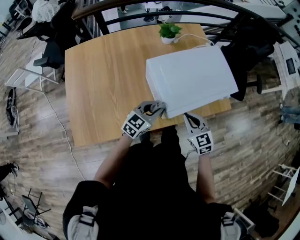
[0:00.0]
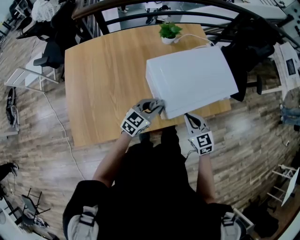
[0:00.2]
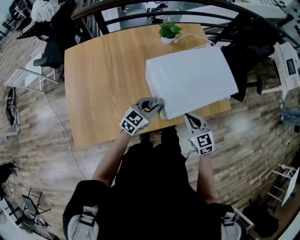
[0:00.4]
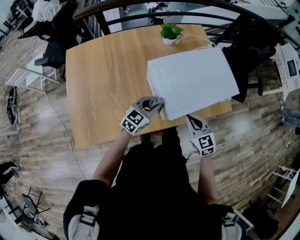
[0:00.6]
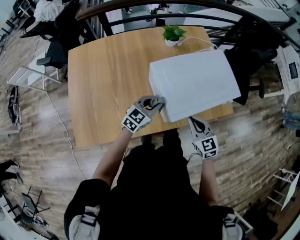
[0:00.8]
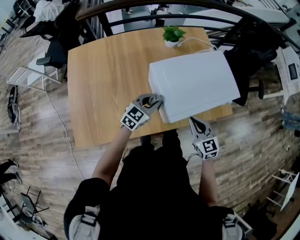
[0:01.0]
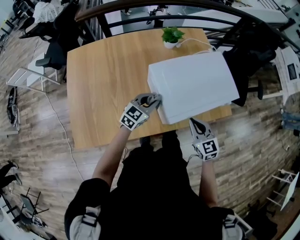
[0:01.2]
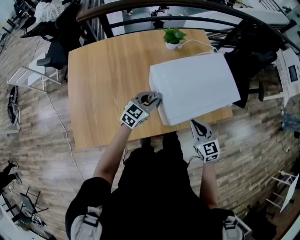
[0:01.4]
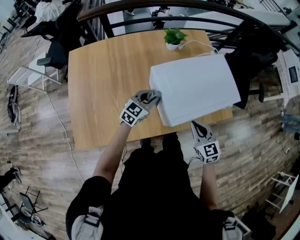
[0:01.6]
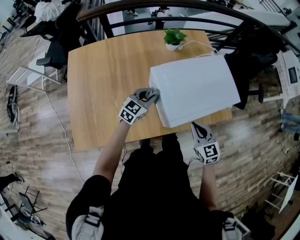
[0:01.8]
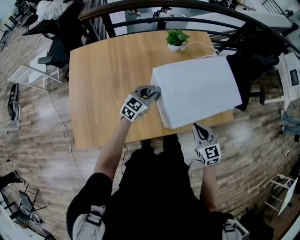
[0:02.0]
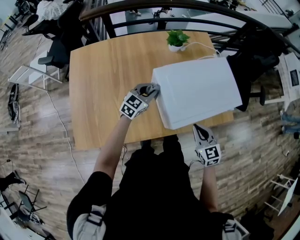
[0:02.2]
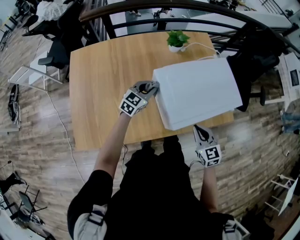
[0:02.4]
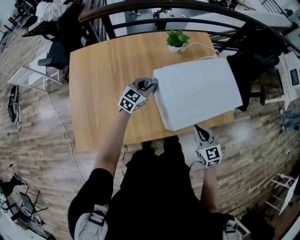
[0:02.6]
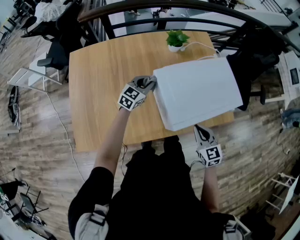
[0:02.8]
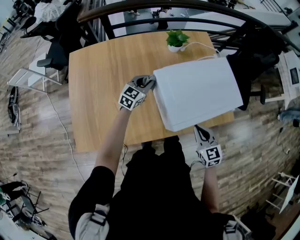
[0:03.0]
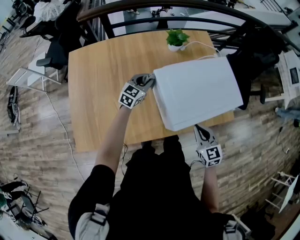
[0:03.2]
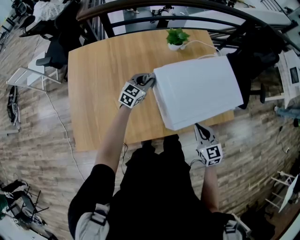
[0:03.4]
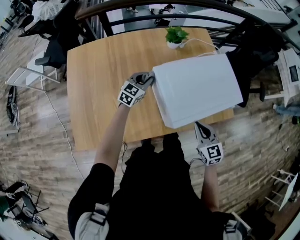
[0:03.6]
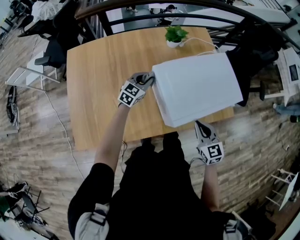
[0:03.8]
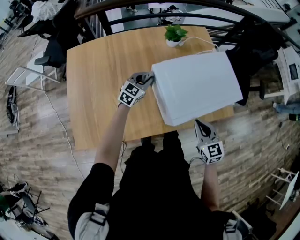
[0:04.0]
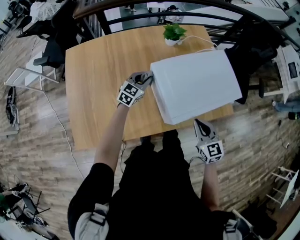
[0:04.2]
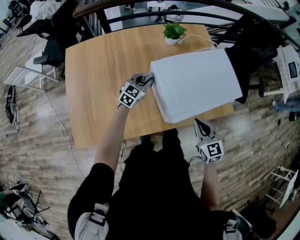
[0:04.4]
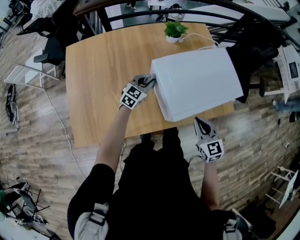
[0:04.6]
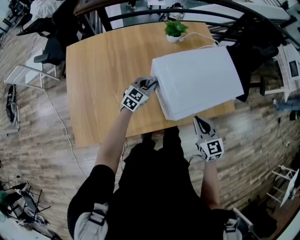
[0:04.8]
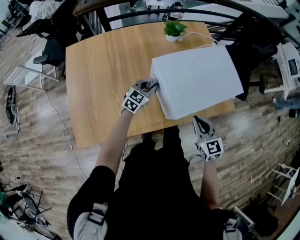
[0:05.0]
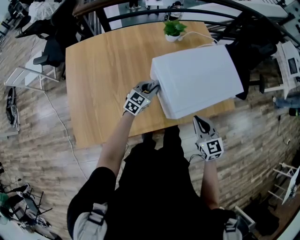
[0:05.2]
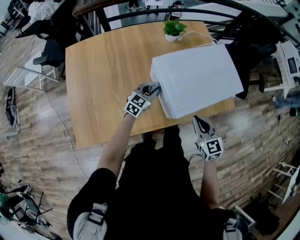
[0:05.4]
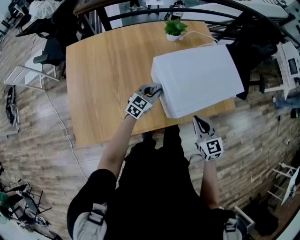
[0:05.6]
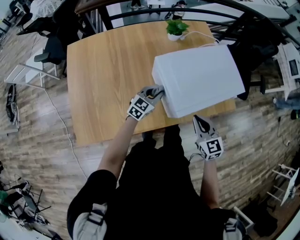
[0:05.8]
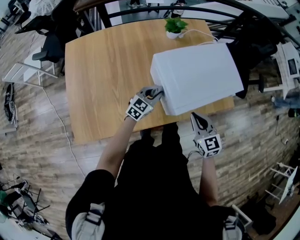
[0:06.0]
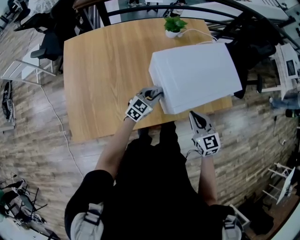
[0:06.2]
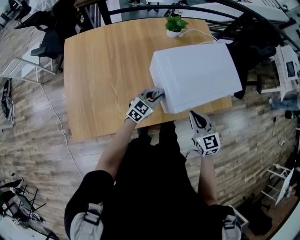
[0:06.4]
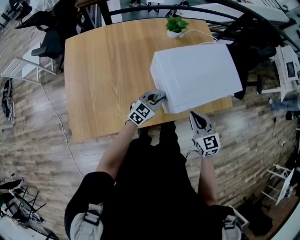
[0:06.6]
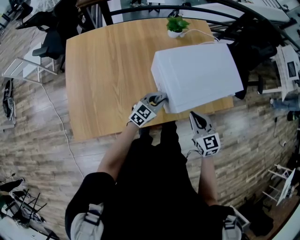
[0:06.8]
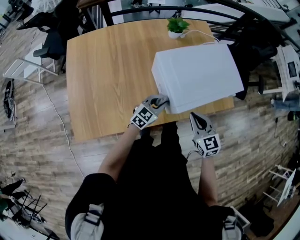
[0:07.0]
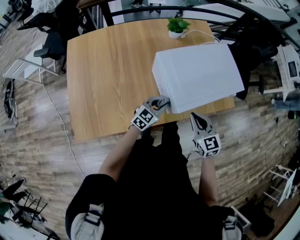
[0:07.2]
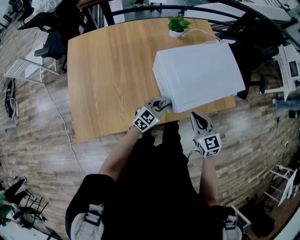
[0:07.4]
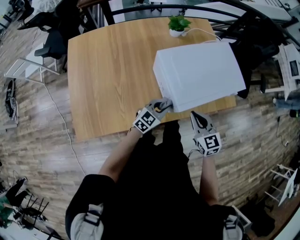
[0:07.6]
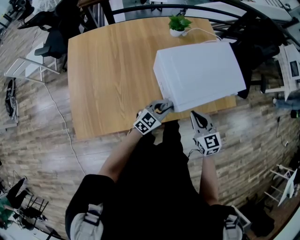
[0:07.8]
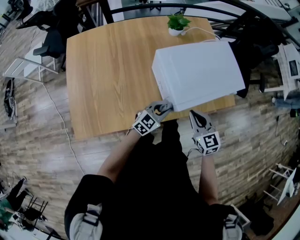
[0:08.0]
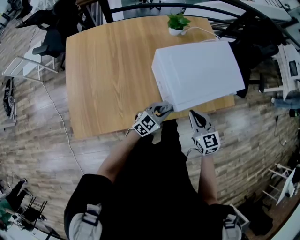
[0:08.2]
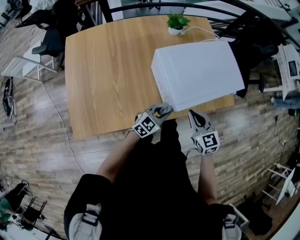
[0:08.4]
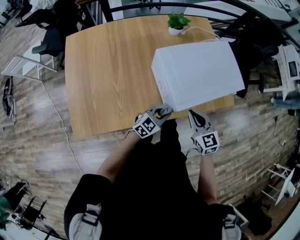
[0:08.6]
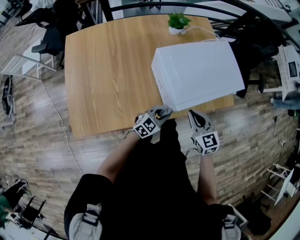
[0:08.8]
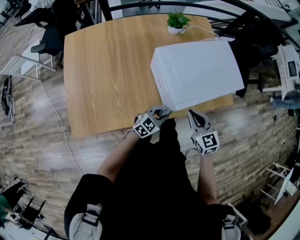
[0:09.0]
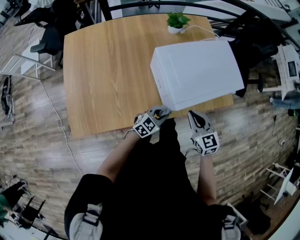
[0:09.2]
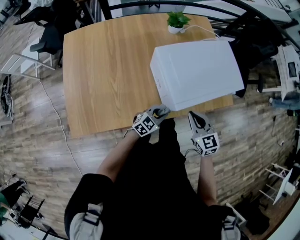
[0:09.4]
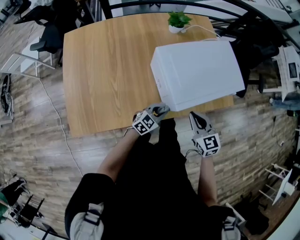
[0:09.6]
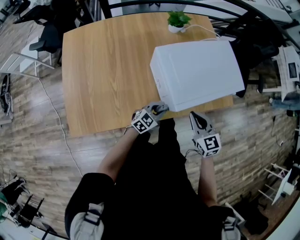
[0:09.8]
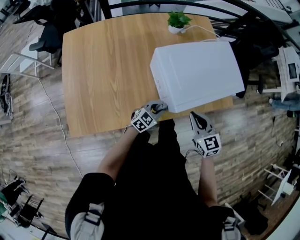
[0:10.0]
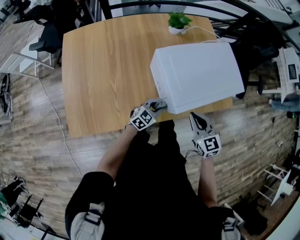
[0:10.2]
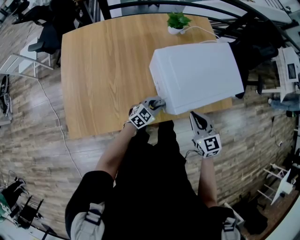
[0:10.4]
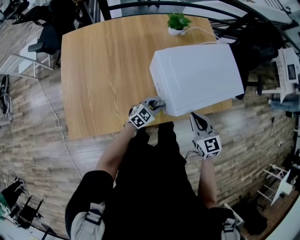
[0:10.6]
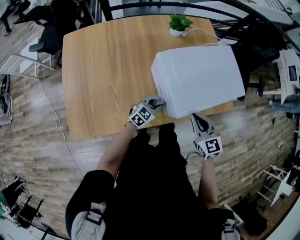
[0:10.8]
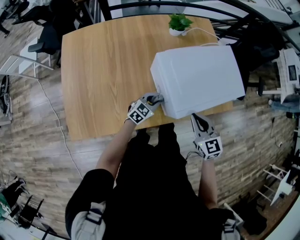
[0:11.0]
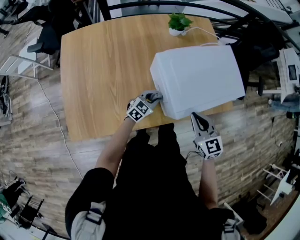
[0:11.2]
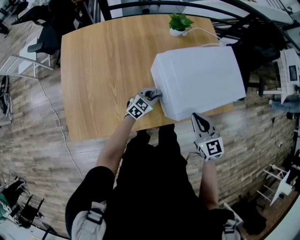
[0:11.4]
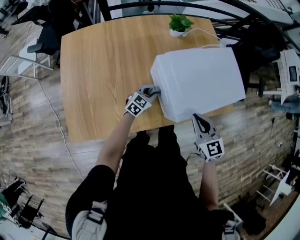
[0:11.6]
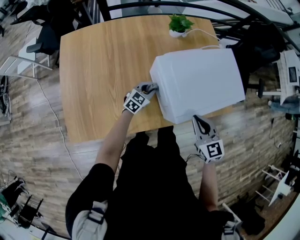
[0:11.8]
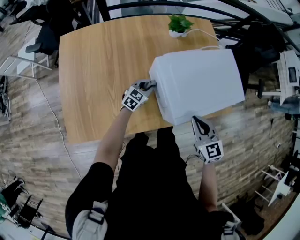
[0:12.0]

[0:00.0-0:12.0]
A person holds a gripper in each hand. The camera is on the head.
0:00.0 to 0:01.6: The left gripper travels forward and to the left by some 10 cm.
0:01.6 to 0:03.0: The left gripper travels forward and to the left by roughly 10 cm.
0:03.0 to 0:04.4: The grippers move only a little.
0:04.4 to 0:06.0: The left gripper travels backward and to the right by some 10 cm.
0:06.0 to 0:07.6: The left gripper heads backward and to the right, covering roughly 10 cm.
0:07.6 to 0:09.0: The left gripper changes place by some 5 cm.
0:09.0 to 0:10.4: The left gripper is displaced forward by about 5 cm.
0:10.4 to 0:12.0: The left gripper travels forward and to the left by some 15 cm.

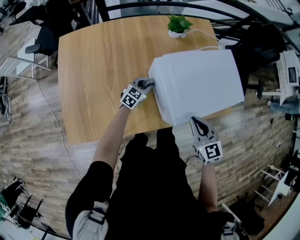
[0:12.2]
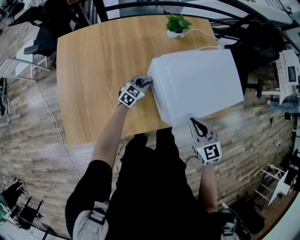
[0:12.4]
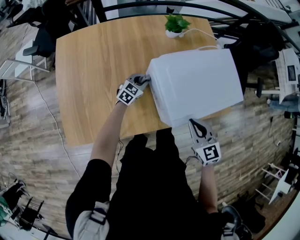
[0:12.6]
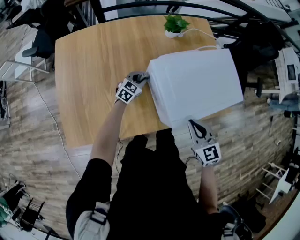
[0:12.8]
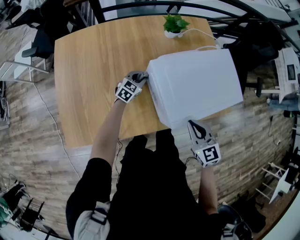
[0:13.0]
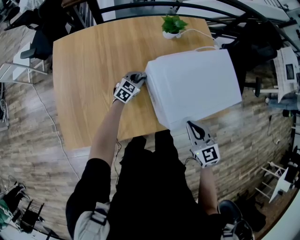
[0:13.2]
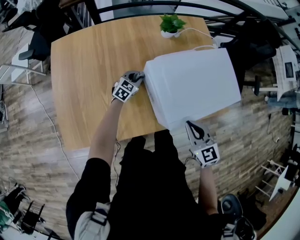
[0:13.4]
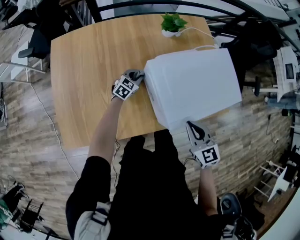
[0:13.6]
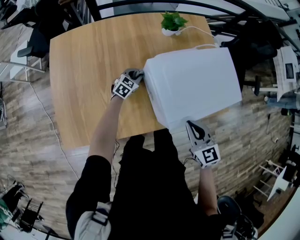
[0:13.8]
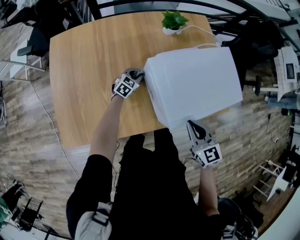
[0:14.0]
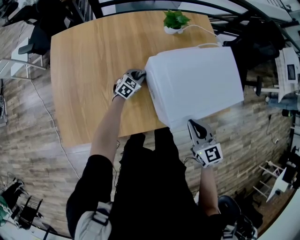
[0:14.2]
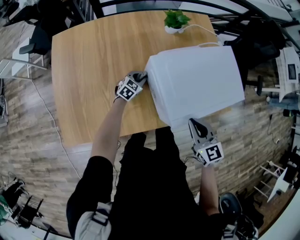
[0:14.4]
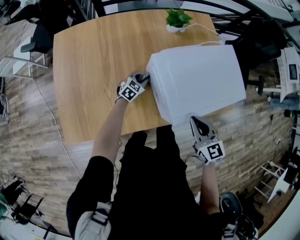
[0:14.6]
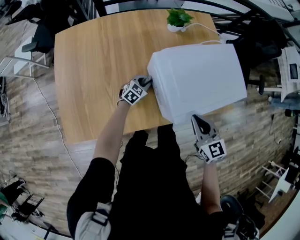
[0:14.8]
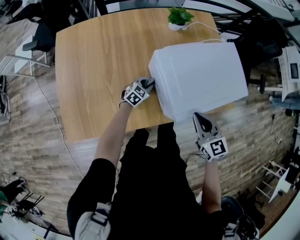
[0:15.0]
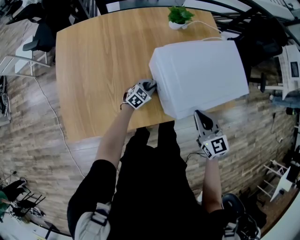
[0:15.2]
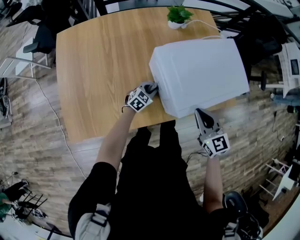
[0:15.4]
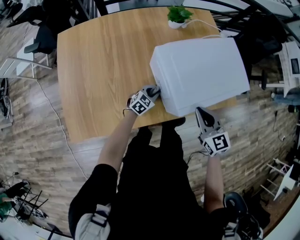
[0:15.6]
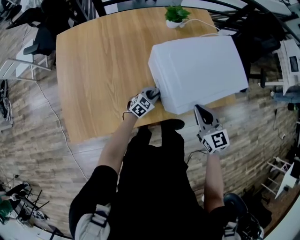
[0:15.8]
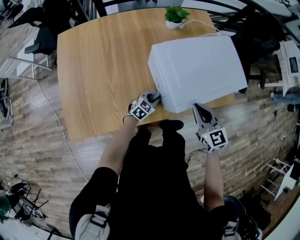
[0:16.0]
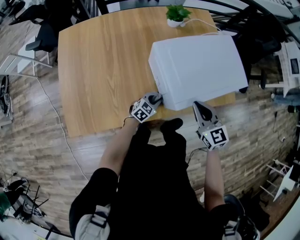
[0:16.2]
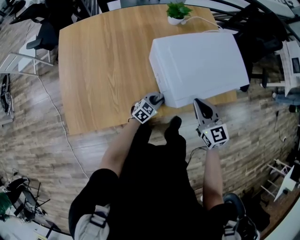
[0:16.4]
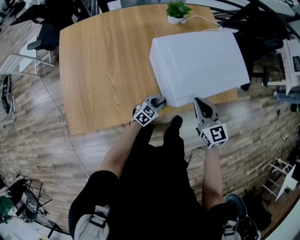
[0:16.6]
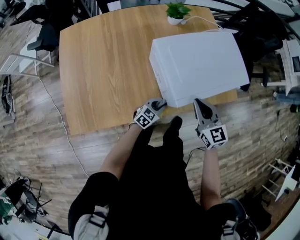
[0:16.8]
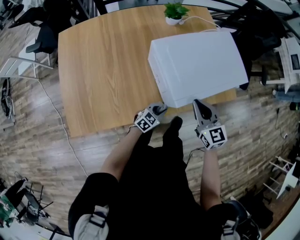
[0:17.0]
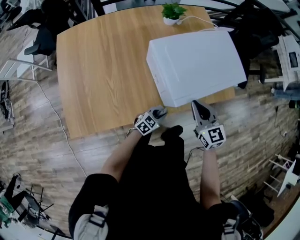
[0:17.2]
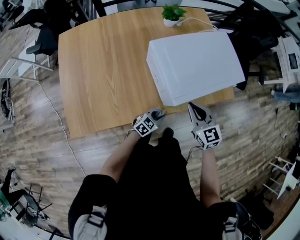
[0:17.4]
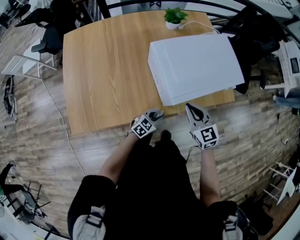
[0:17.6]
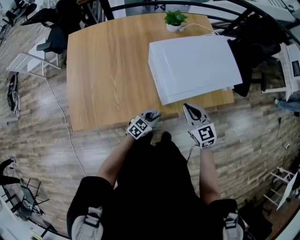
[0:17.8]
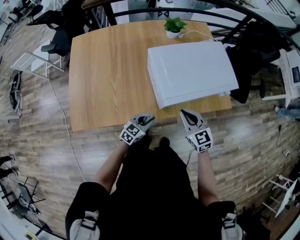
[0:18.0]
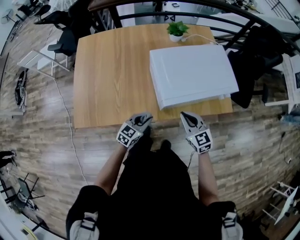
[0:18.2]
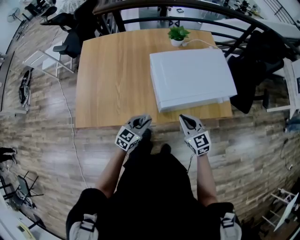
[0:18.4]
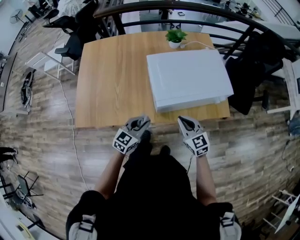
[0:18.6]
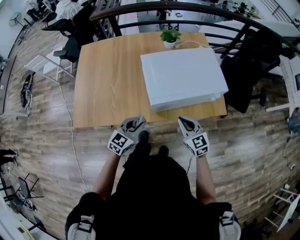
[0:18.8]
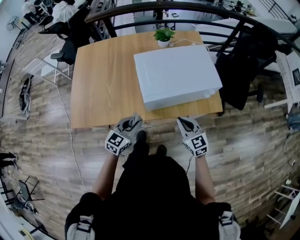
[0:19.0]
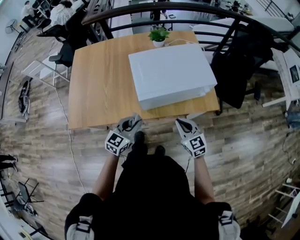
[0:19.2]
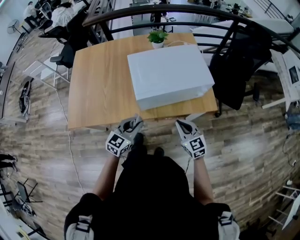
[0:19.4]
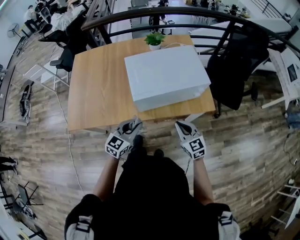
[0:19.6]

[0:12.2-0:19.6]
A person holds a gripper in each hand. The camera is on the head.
0:12.2 to 0:13.6: The left gripper shifts roughly 5 cm forward.
0:13.6 to 0:15.2: The left gripper is displaced backward and to the right by roughly 10 cm.
0:15.2 to 0:16.6: The left gripper goes about 15 cm backward and to the right.
0:16.6 to 0:18.2: The left gripper moves upward and backward, some 15 cm. Meanwhile the right gripper goes about 5 cm backward.
0:18.2 to 0:19.6: The left gripper shifts about 15 cm upward, to the right and backward. The right gripper moves to the right and backward, about 15 cm.

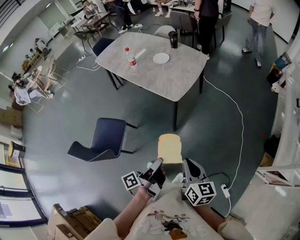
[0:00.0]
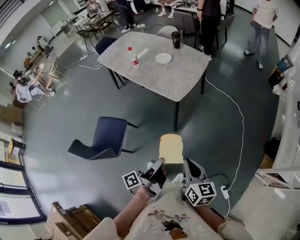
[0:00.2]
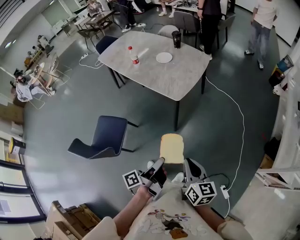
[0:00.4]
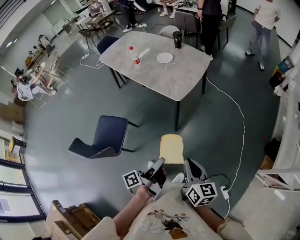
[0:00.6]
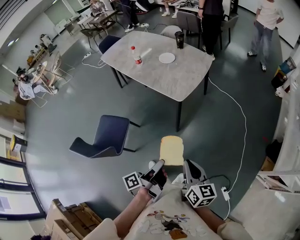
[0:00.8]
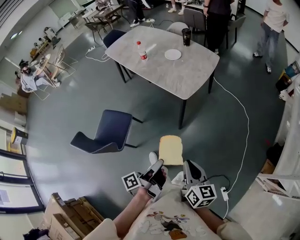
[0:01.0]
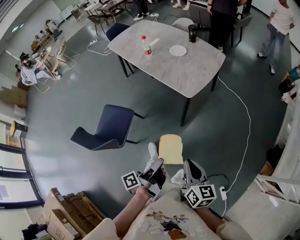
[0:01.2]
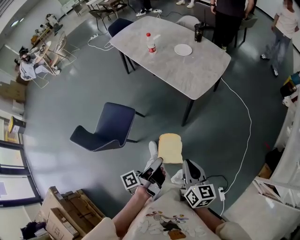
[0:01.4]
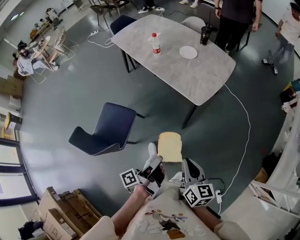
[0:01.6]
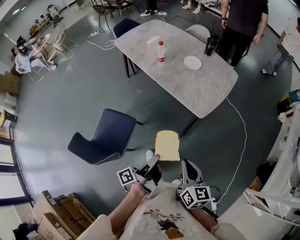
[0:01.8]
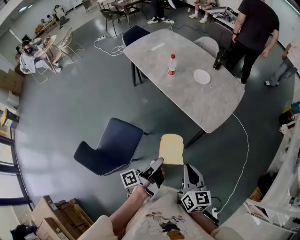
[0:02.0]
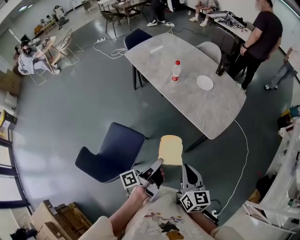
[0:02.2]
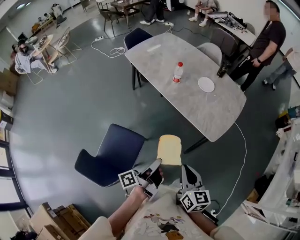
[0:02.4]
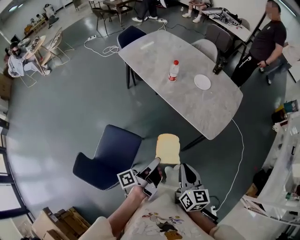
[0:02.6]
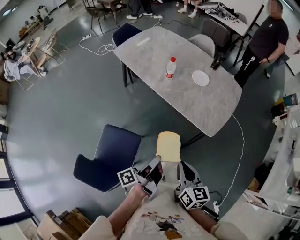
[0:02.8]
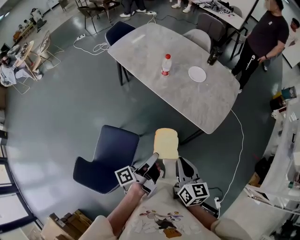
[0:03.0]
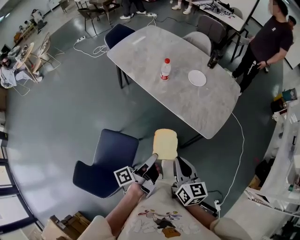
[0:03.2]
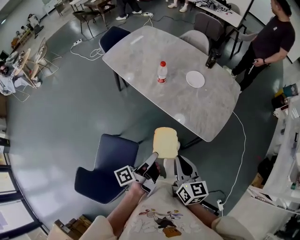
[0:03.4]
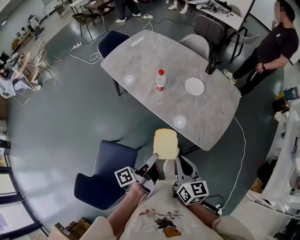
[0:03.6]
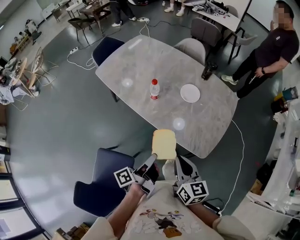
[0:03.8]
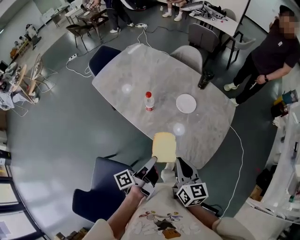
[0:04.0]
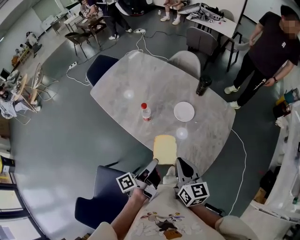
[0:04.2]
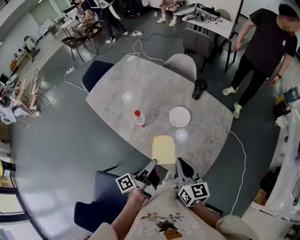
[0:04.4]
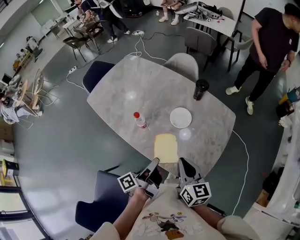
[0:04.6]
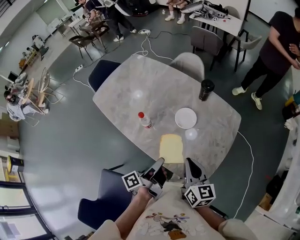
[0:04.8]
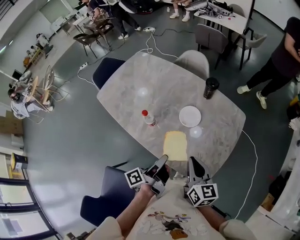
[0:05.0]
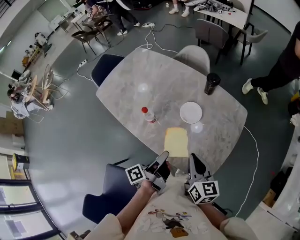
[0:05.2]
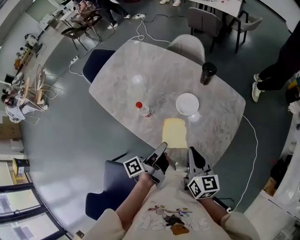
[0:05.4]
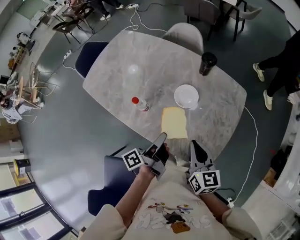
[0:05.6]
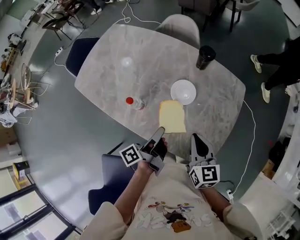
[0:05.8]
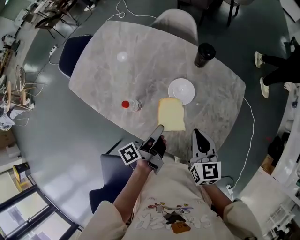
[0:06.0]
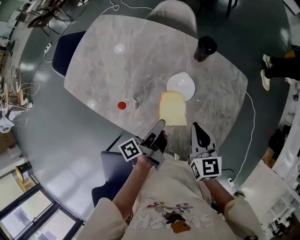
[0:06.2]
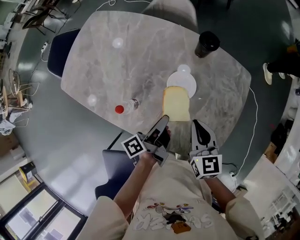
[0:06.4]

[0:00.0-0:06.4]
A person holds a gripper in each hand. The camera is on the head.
0:00.0 to 0:01.6: The right gripper shifts by roughly 15 cm.
0:01.6 to 0:03.2: The right gripper moves about 30 cm.
0:03.2 to 0:04.8: The right gripper shifts by approximately 35 cm.
0:04.8 to 0:06.4: The right gripper changes place by roughly 15 cm.
